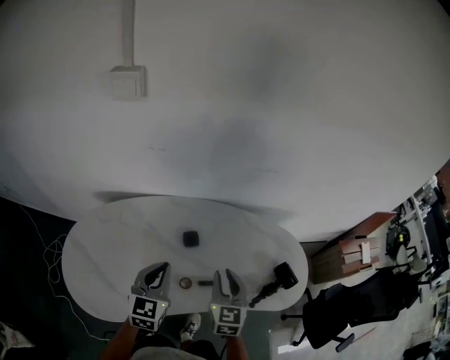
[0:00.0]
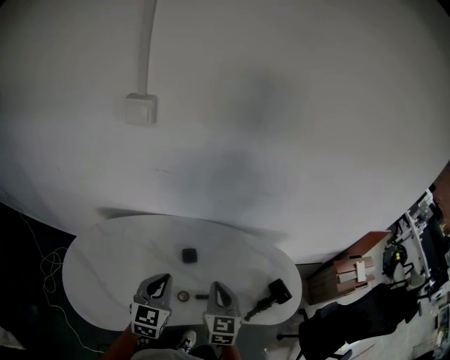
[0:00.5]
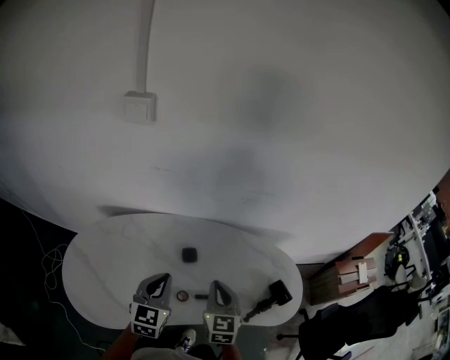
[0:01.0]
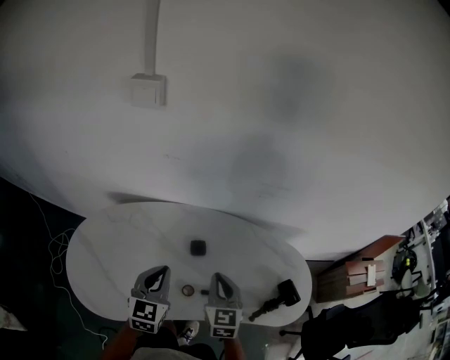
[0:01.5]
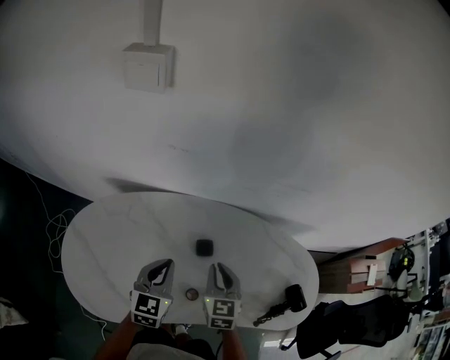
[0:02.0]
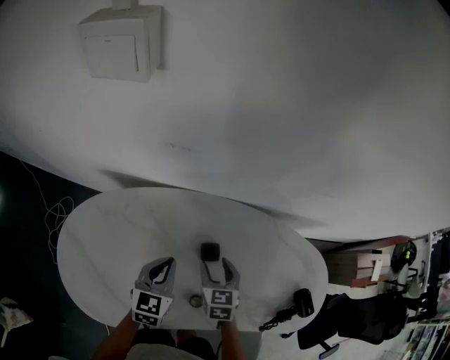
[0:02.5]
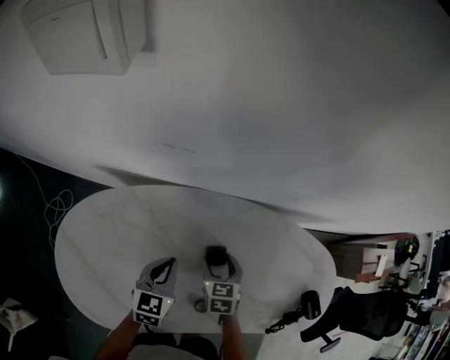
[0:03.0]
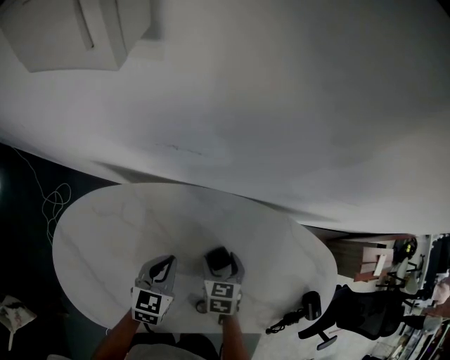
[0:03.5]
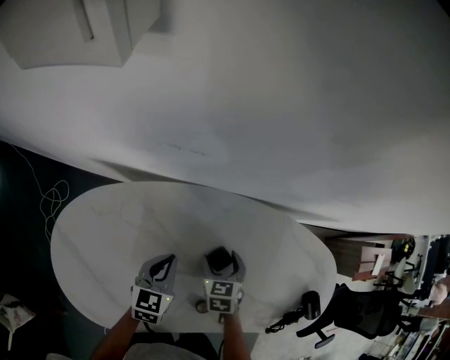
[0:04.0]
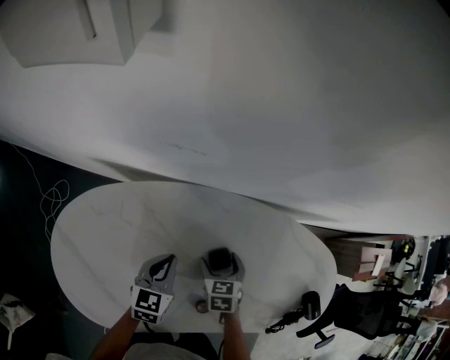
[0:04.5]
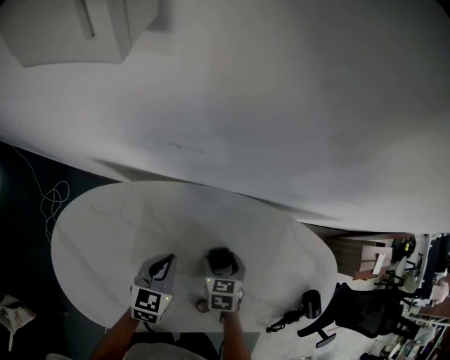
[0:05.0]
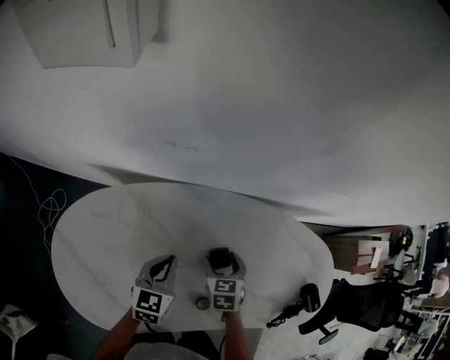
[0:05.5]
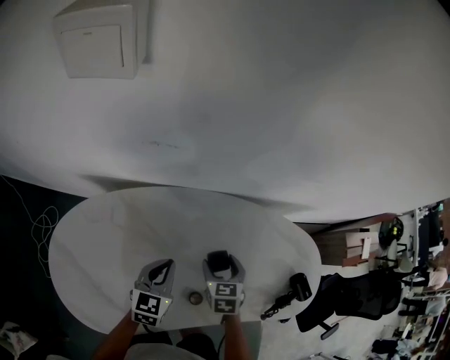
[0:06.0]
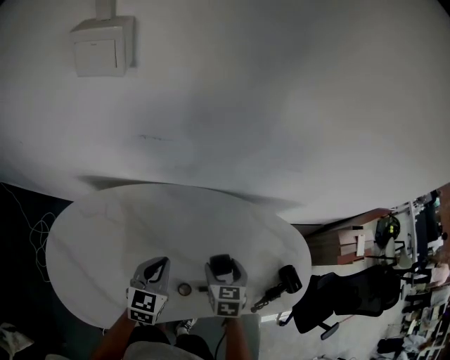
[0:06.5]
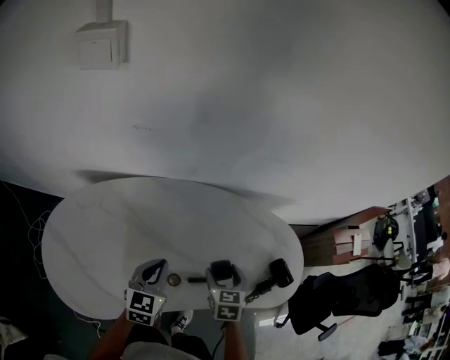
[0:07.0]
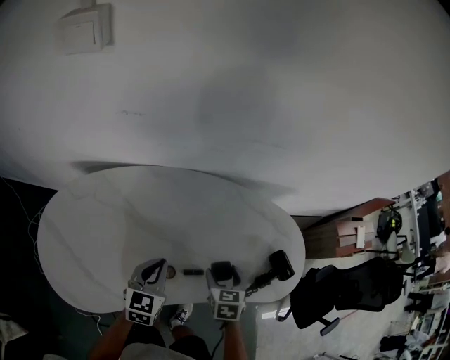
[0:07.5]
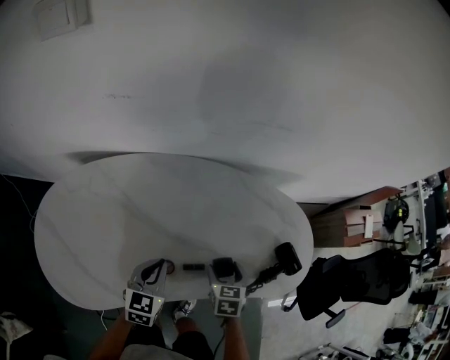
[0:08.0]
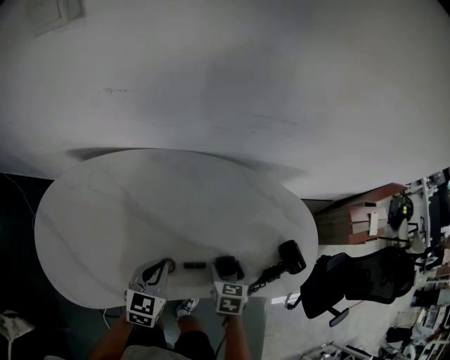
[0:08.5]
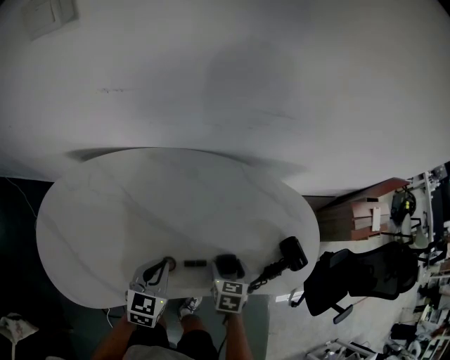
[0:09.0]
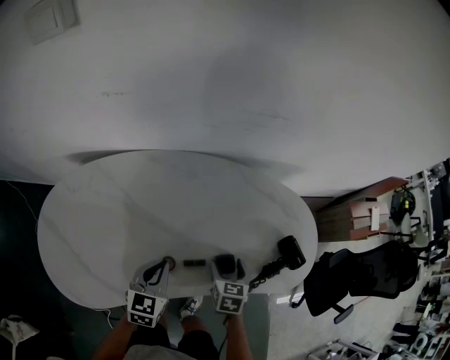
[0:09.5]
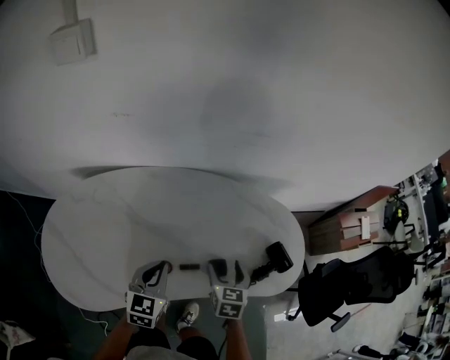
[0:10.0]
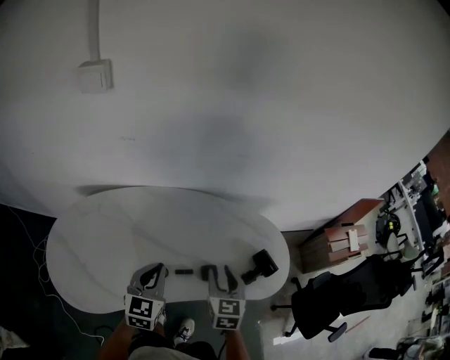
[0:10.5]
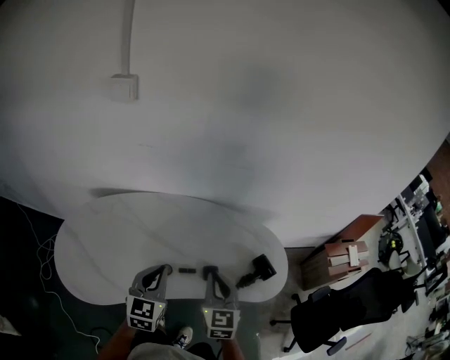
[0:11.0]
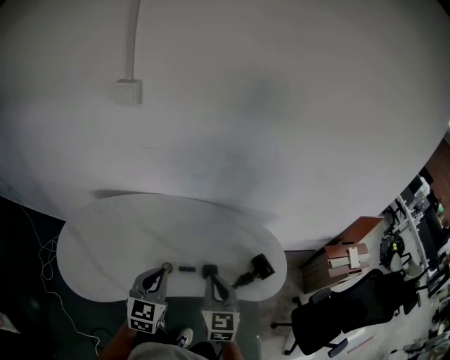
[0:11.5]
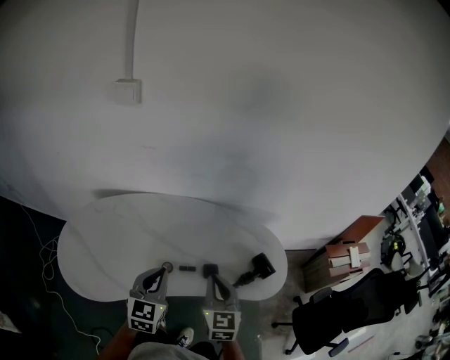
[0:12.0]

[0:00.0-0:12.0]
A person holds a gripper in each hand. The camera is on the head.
0.0 to 2.0 s: The left gripper moves forward, approximately 5 cm, while the right gripper goes about 10 cm forward and to the left.
2.0 to 4.0 s: Both grippers move downward and forward, roughly 15 cm. The right gripper swivels roughly 20 degrees, and opens its fingers.
4.0 to 6.0 s: The right gripper travels upward by approximately 5 cm; the left gripper moves roughly 5 cm.
6.0 to 8.0 s: Both grippers move to the right and backward, about 15 cm.
8.0 to 10.0 s: Both grippers move upward, about 5 cm.
10.0 to 12.0 s: Both grippers move upward and backward, some 20 cm. The right gripper changes its angle by about 30 degrees, and closes up.

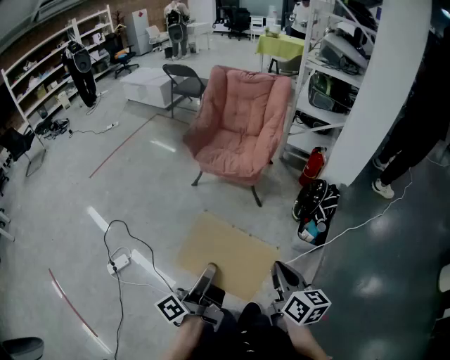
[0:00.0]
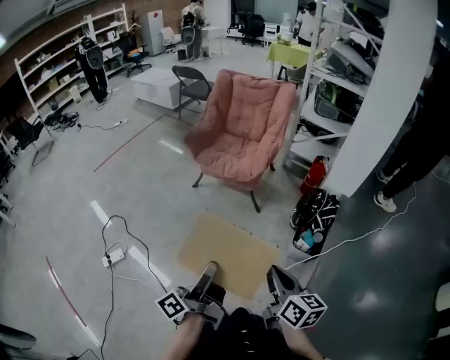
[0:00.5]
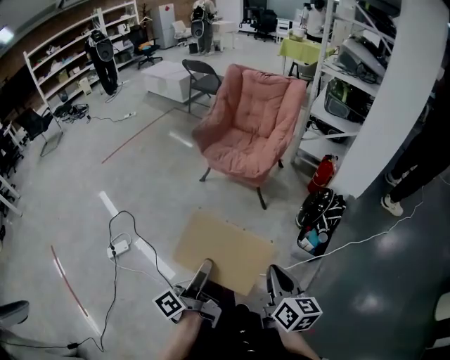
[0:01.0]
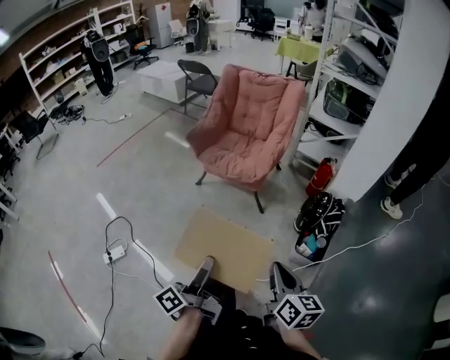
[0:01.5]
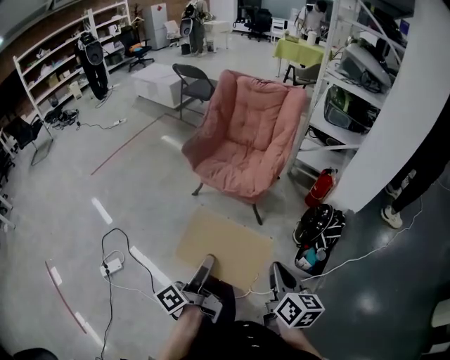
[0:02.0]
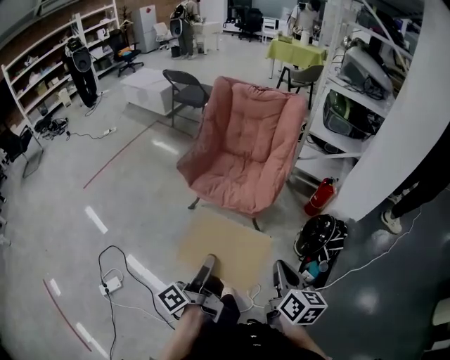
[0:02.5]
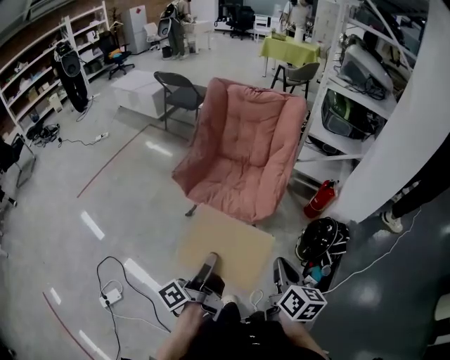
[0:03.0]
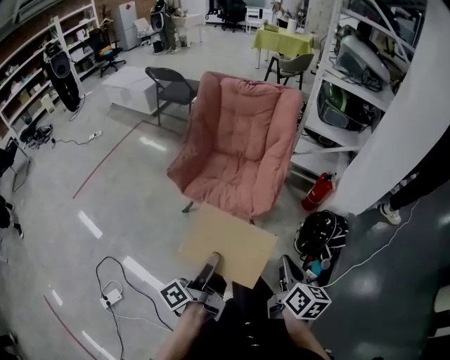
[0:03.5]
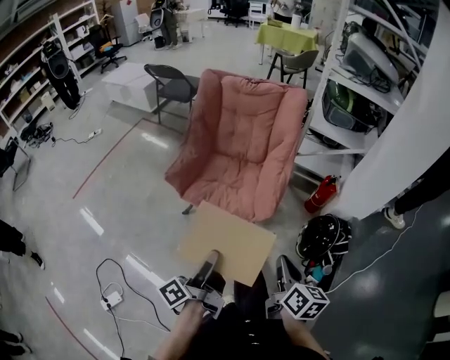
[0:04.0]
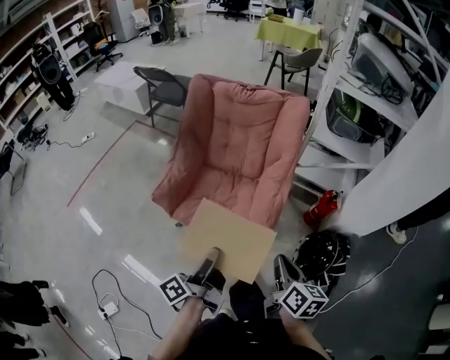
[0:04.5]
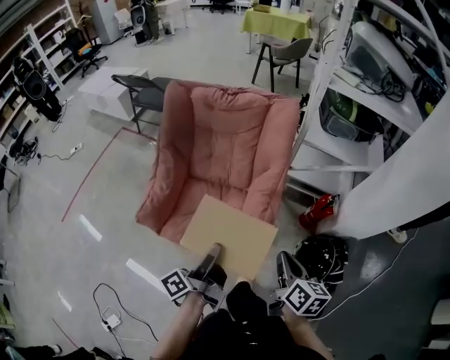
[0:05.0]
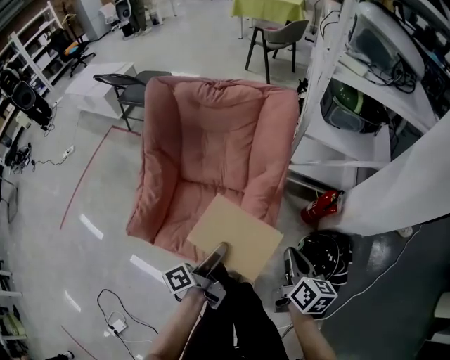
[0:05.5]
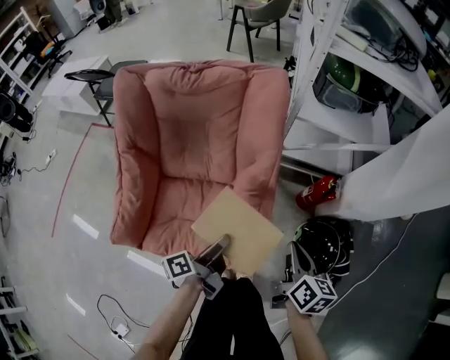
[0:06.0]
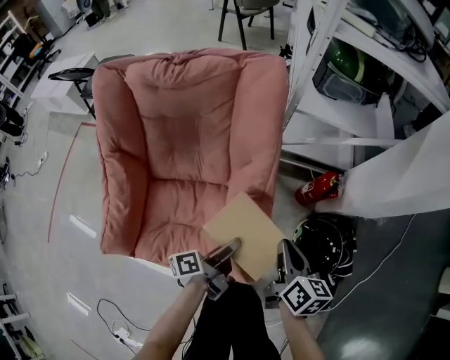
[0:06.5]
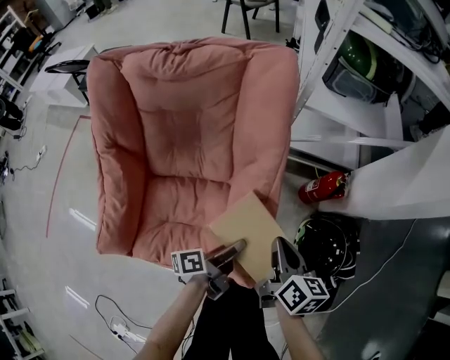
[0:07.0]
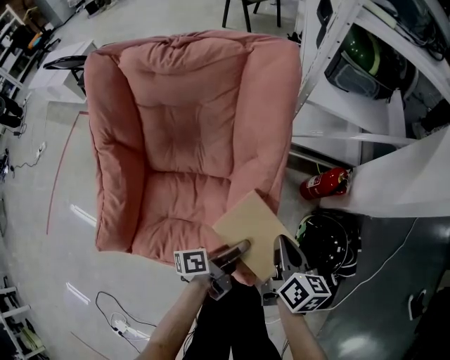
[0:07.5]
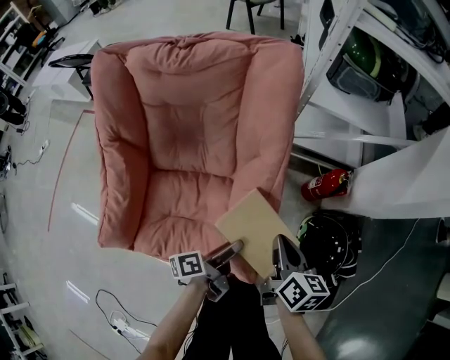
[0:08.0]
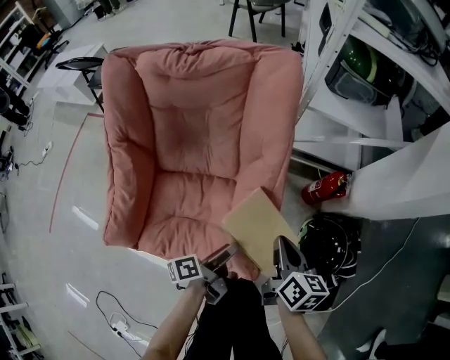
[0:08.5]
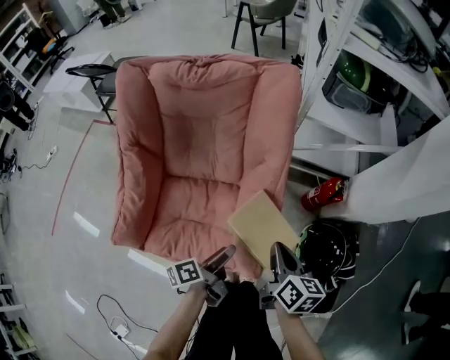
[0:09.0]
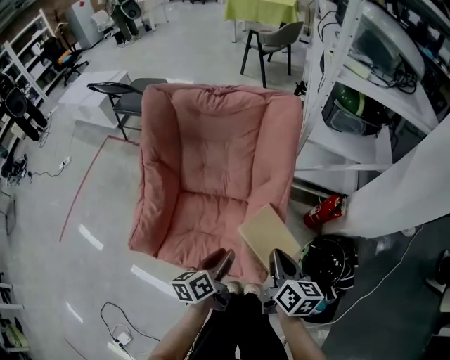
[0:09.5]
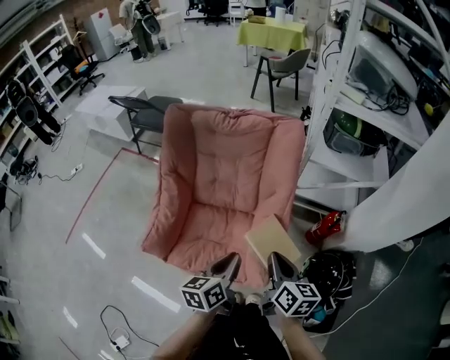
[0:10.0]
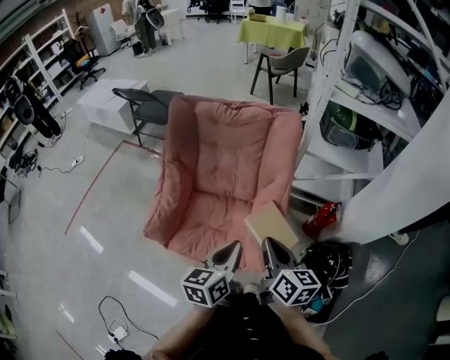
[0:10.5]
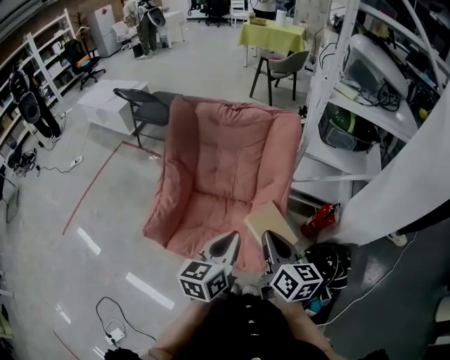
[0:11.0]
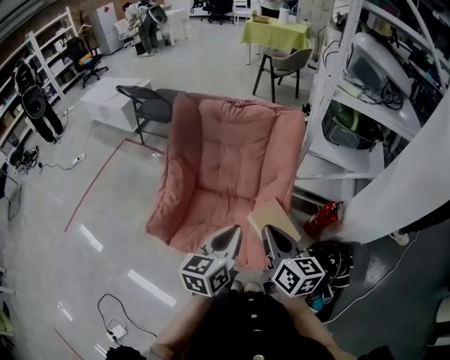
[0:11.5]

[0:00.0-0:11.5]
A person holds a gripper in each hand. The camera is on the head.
0.0 to 2.0 s: The right gripper shifts by some 15 cm.
2.0 to 4.0 s: The right gripper changes place by about 25 cm.
4.0 to 6.0 s: The right gripper shifts by roughly 40 cm.
6.0 to 7.5 s: The right gripper moves downward, approximately 10 cm.
7.5 to 9.5 s: The right gripper heads upward, covering roughly 10 cm.
9.5 to 11.5 s: The right gripper shifts about 15 cm upward, and changes its angle by about 20 degrees.

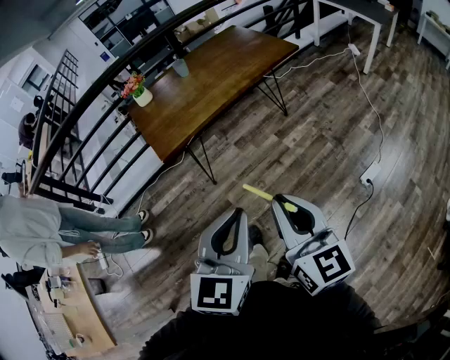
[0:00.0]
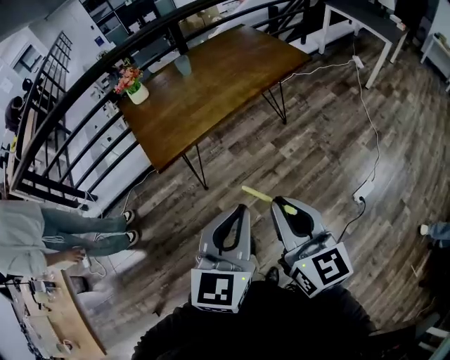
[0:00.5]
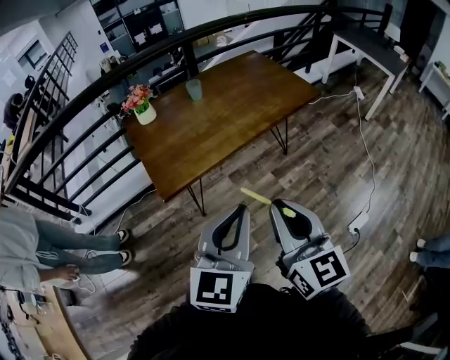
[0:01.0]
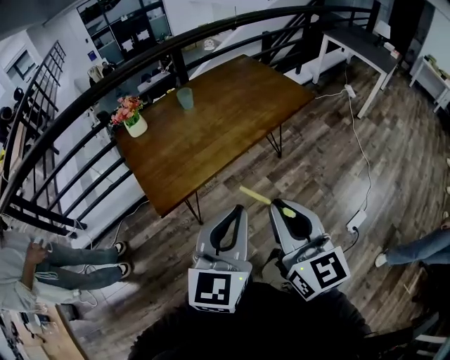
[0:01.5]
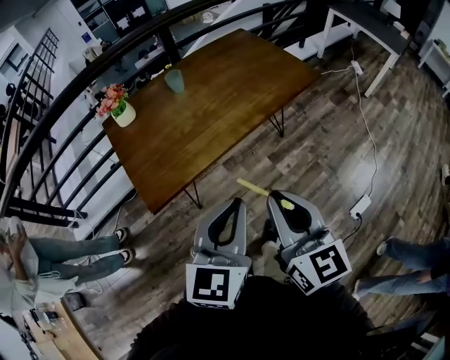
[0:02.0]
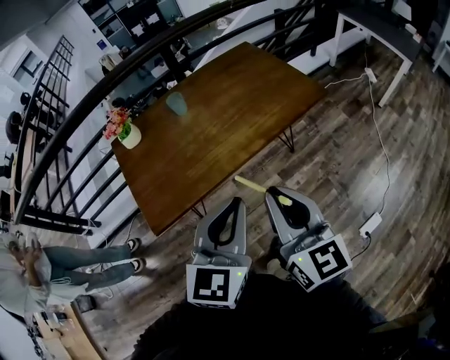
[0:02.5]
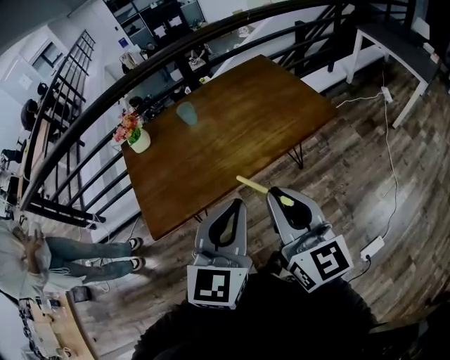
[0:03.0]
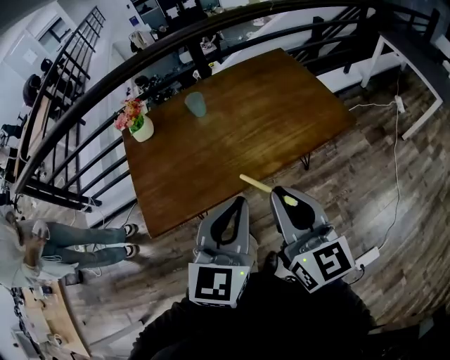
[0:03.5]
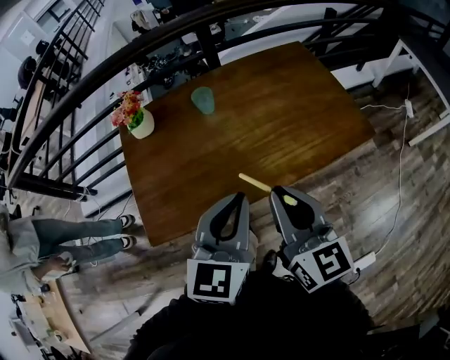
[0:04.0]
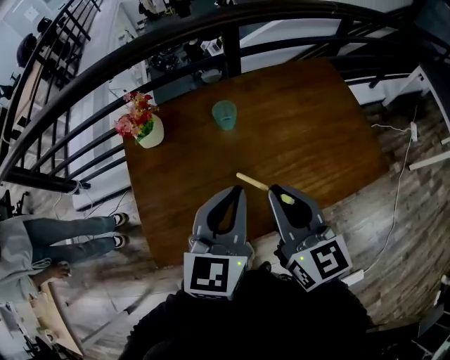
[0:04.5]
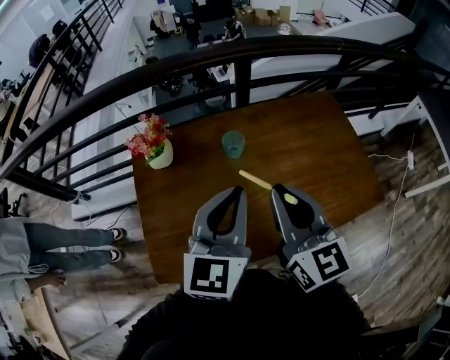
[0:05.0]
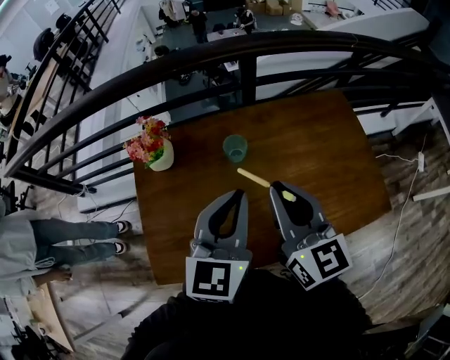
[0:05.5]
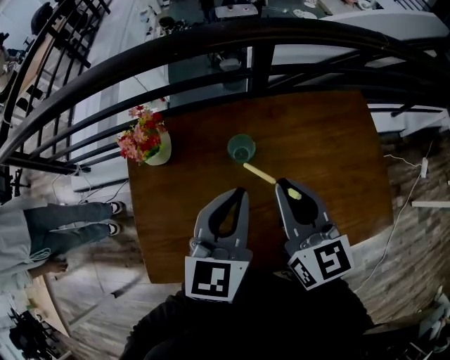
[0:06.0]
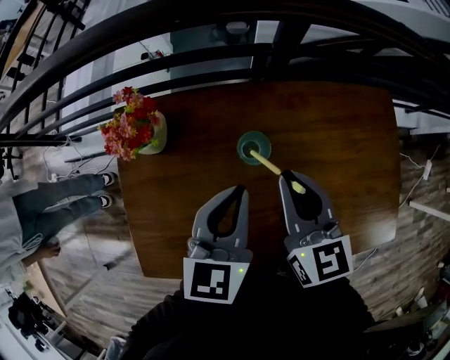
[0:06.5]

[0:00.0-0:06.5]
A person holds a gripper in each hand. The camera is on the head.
0.0 to 2.0 s: The grippers both shift forward by some 30 cm.
2.0 to 4.5 s: The grippers both shift forward by some 40 cm. The left gripper changes its angle by about 20 degrees, while the right gripper turns by roughly 20 degrees.
4.5 to 6.5 s: The two grippers go approximately 20 cm forward.
